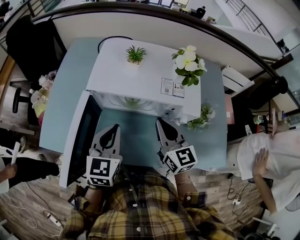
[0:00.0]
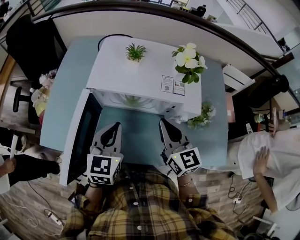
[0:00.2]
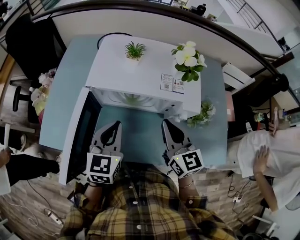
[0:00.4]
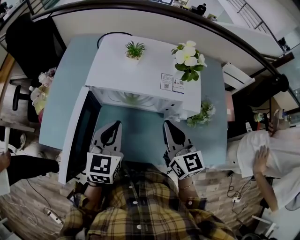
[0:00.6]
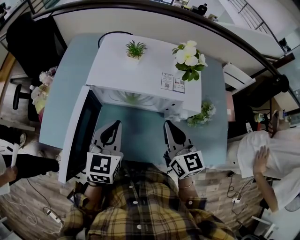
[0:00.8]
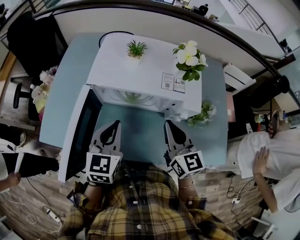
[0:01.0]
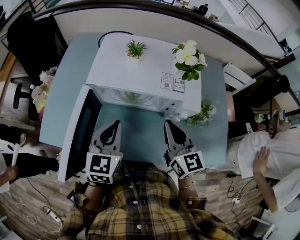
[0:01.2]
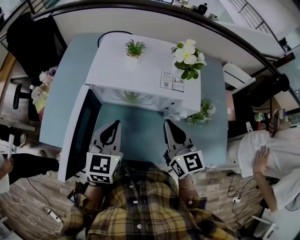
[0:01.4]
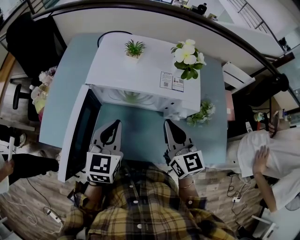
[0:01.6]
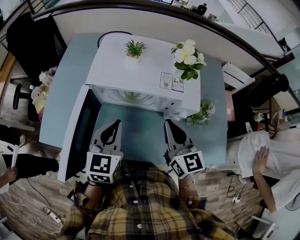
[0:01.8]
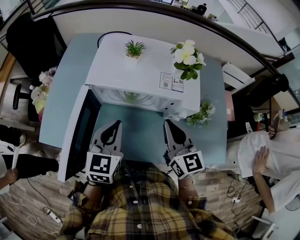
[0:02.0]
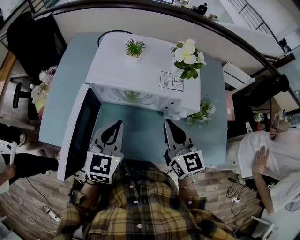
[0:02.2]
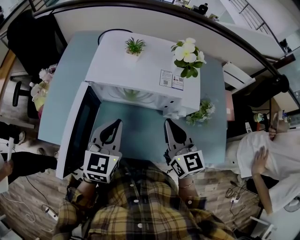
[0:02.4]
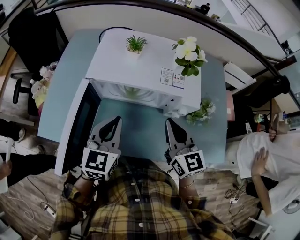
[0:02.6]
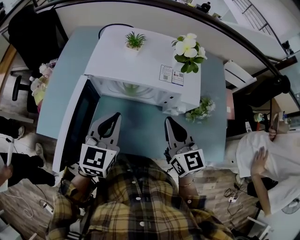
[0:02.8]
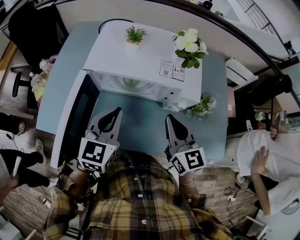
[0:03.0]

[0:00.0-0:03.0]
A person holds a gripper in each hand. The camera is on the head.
0.0 to 1.6 s: There are only small adjustments of the grippers.
1.6 to 3.0 s: The grippers make only small movements.

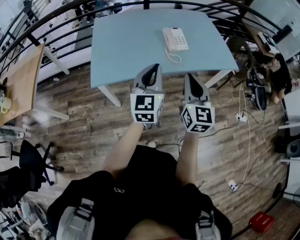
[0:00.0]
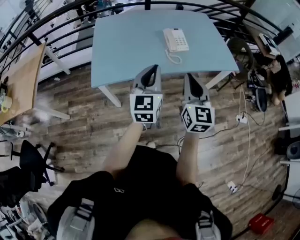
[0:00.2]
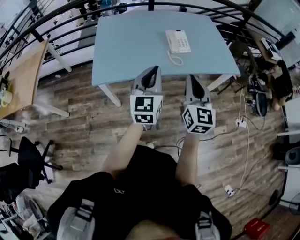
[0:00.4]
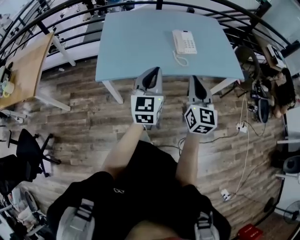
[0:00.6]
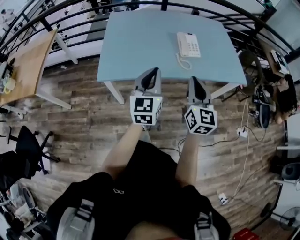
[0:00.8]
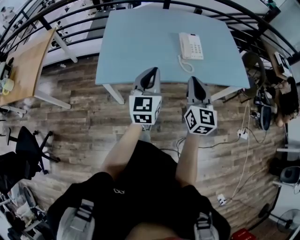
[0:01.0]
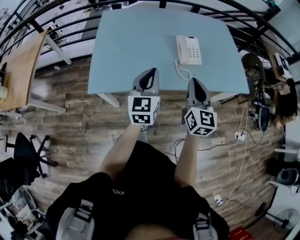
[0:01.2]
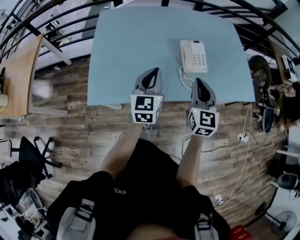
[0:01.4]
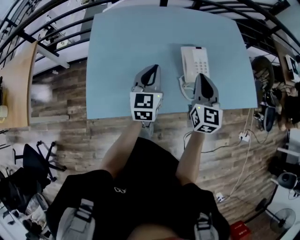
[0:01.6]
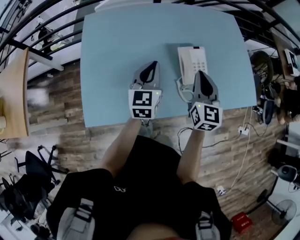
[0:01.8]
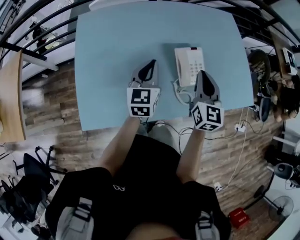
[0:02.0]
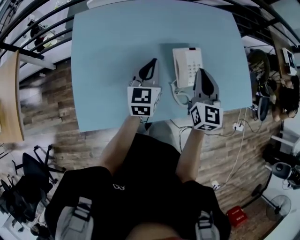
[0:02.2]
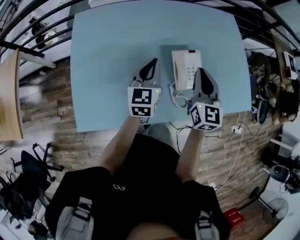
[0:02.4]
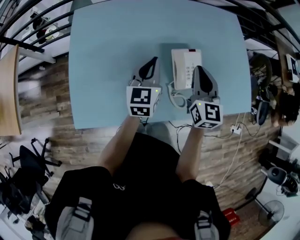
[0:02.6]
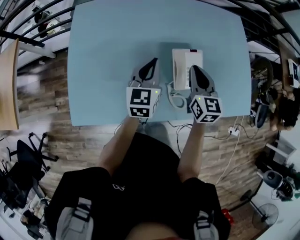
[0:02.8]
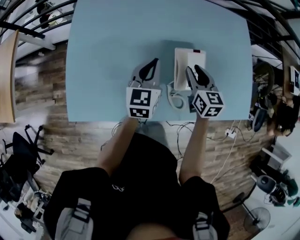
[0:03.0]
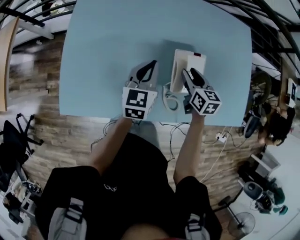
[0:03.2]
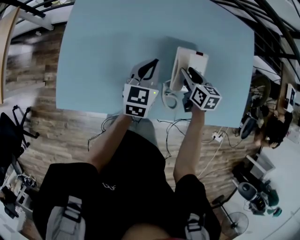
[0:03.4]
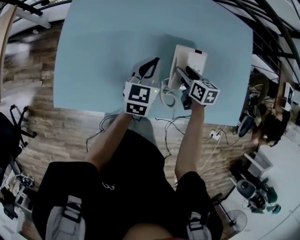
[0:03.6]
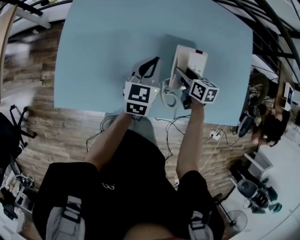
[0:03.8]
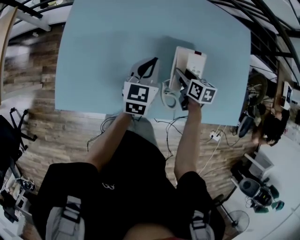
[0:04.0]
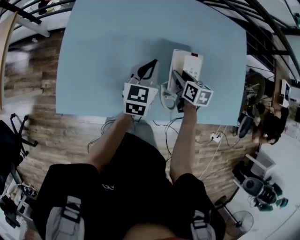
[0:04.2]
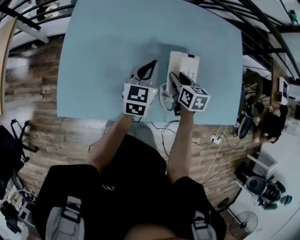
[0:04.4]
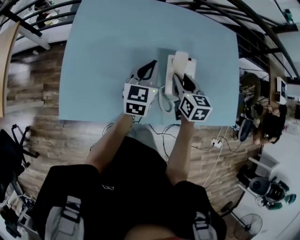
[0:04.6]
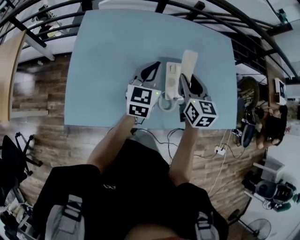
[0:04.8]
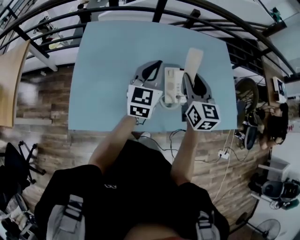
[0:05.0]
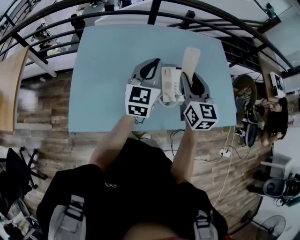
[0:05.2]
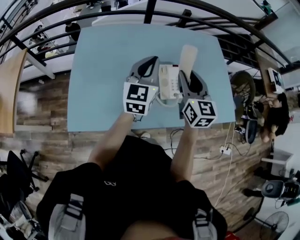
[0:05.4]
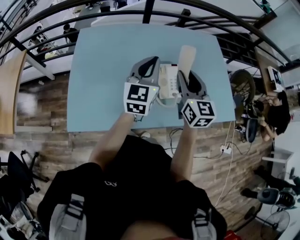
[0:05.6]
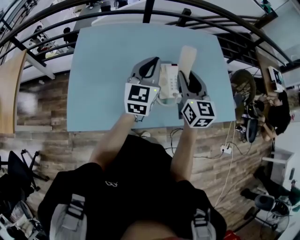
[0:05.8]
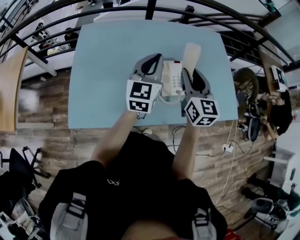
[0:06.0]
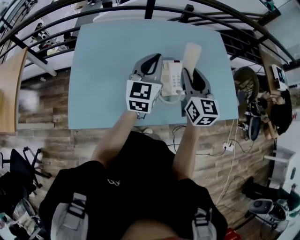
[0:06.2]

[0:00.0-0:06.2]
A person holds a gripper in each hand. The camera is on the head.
0.0 to 1.6 s: The grippers both shift forward by approximately 35 cm.
1.6 to 3.2 s: The right gripper shifts approximately 25 cm downward and forward, changes its angle by about 40 degrees, and opens. The left gripper shifts some 15 cm forward, downward and to the right.
3.2 to 4.6 s: The right gripper moves upward, about 5 cm.
4.6 to 6.2 s: The two grippers go about 15 cm upward. The right gripper turns by roughly 30 degrees.

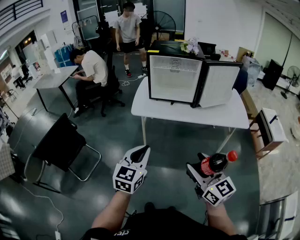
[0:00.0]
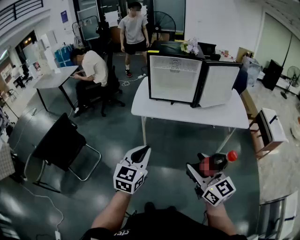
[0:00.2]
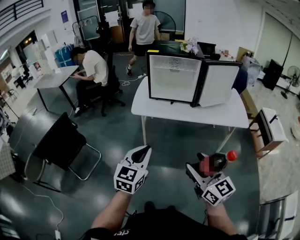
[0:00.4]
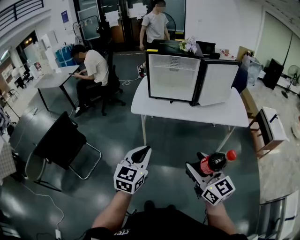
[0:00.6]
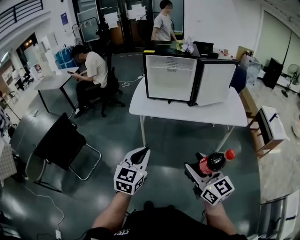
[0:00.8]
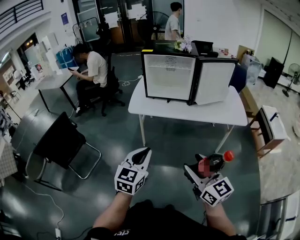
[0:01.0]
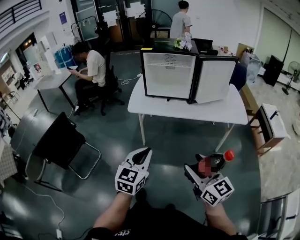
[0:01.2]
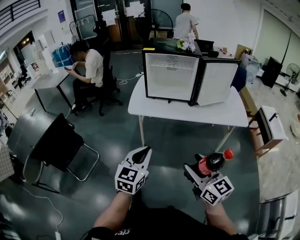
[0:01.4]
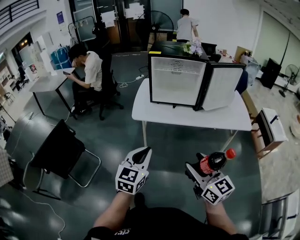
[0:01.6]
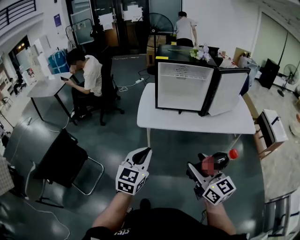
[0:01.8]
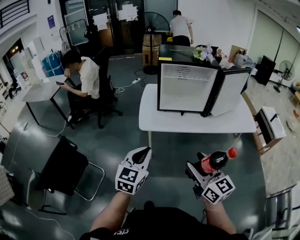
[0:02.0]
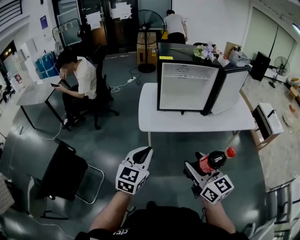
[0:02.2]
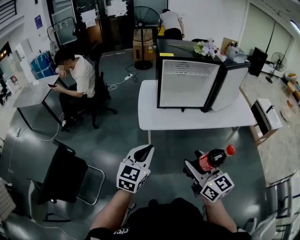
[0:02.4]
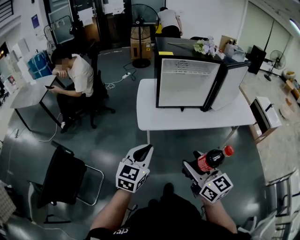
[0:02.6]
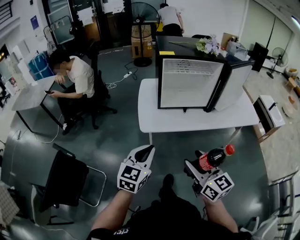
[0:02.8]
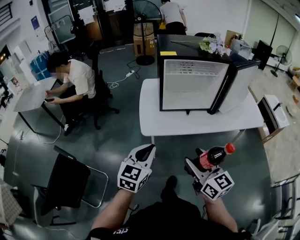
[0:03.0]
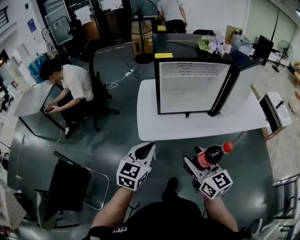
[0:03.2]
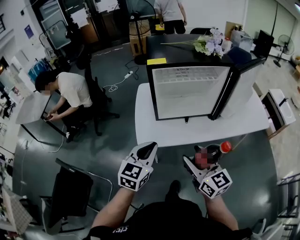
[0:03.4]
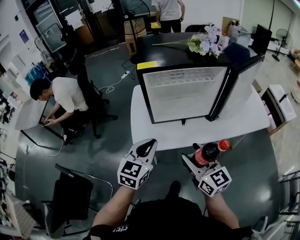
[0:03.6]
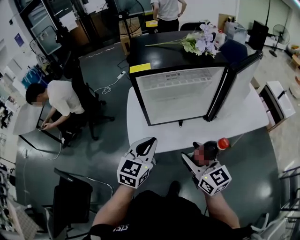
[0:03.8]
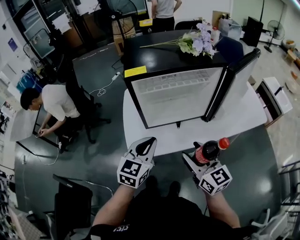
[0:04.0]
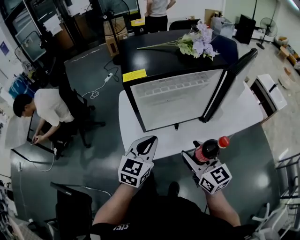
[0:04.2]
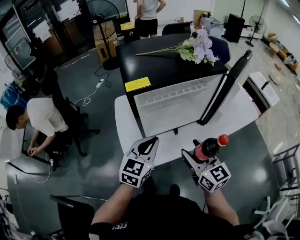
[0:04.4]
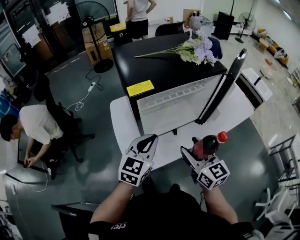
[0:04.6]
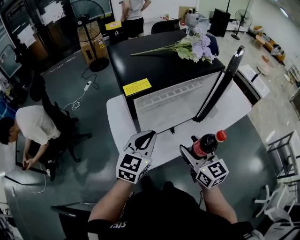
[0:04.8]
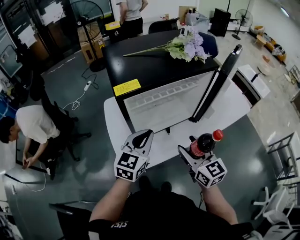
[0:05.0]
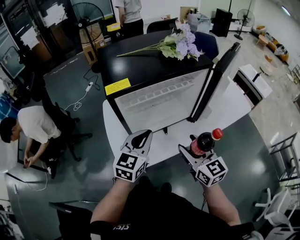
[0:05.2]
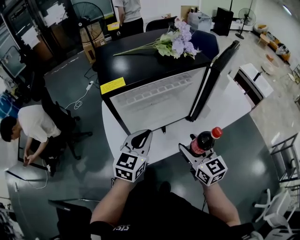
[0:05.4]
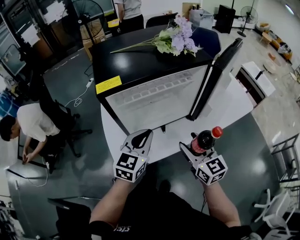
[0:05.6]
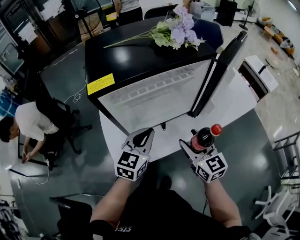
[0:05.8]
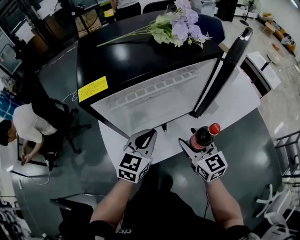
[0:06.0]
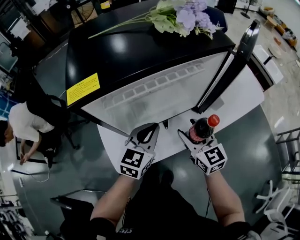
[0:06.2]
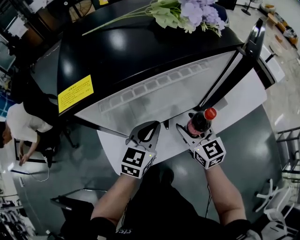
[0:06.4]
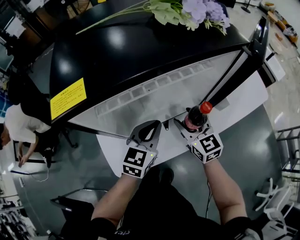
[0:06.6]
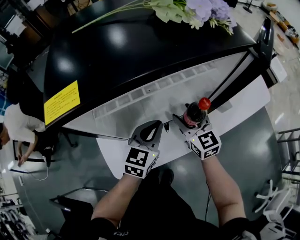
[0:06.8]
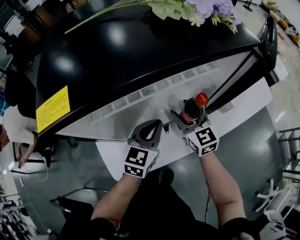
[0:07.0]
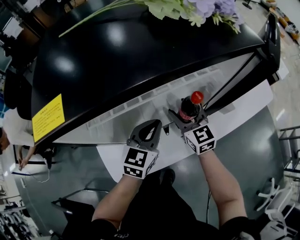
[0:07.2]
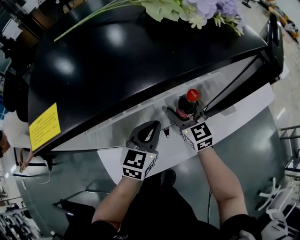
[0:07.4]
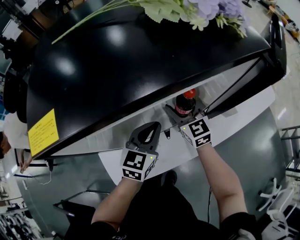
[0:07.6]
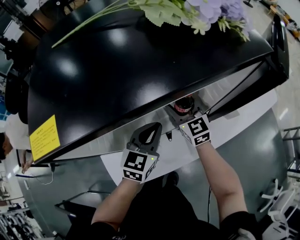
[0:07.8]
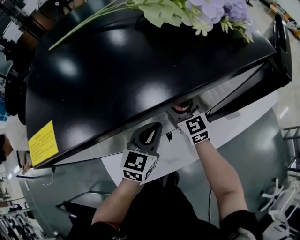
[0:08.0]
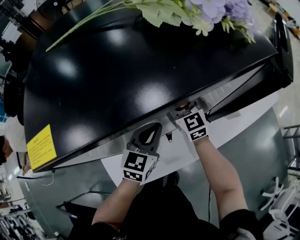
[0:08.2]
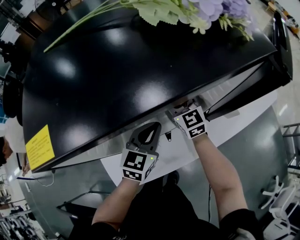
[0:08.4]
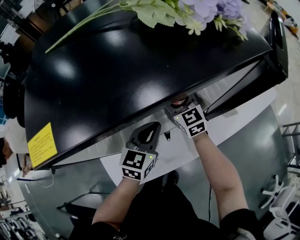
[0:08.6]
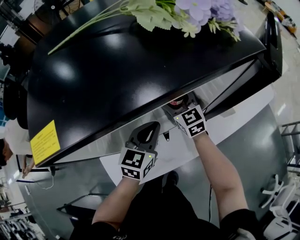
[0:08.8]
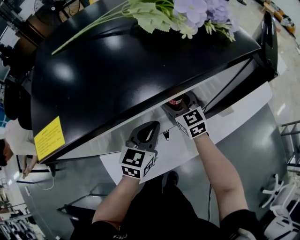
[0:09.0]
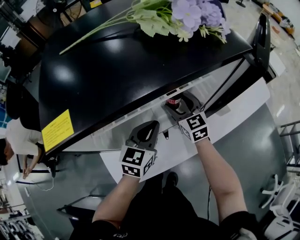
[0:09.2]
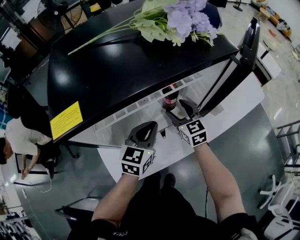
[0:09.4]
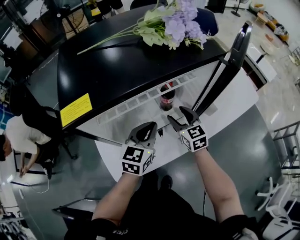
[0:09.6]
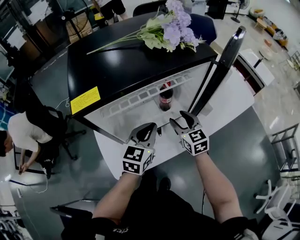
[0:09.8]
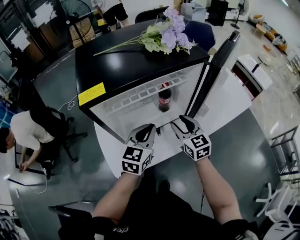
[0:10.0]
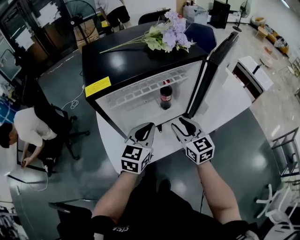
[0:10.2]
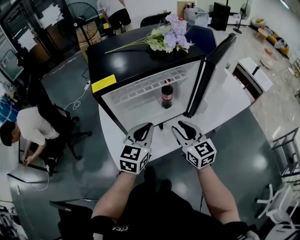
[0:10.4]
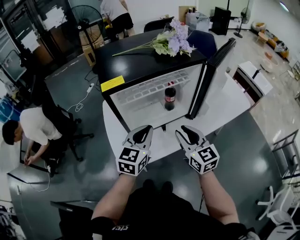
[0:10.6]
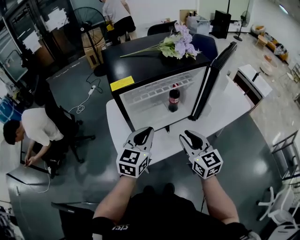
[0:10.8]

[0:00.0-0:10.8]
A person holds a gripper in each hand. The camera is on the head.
0.0 to 1.6 s: Both grippers move forward, about 5 cm.
1.6 to 3.0 s: The grippers both shift forward and to the left by roughly 30 cm.
3.0 to 4.6 s: The grippers both shift forward by roughly 30 cm. The right gripper rotates some 20 degrees. Meanwhile the left gripper turns by roughly 20 degrees.
4.6 to 6.2 s: The right gripper heads forward, downward and to the right, covering roughly 20 cm, while the left gripper goes approximately 15 cm downward, to the right and forward.
6.2 to 7.8 s: The right gripper moves forward and downward, roughly 20 cm. Meanwhile the left gripper is displaced forward and downward by approximately 10 cm.
7.8 to 9.2 s: The grippers move only a little.
9.2 to 10.8 s: Both grippers travel together backward and upward, approximately 30 cm. The right gripper closes up.

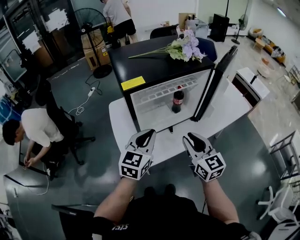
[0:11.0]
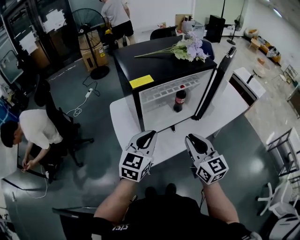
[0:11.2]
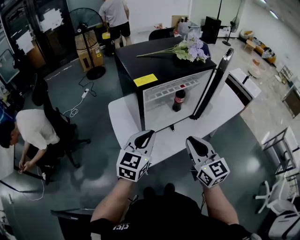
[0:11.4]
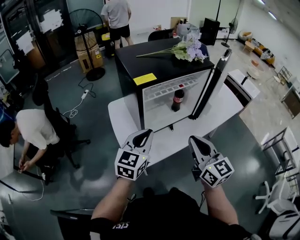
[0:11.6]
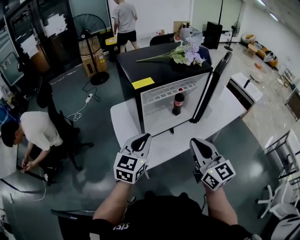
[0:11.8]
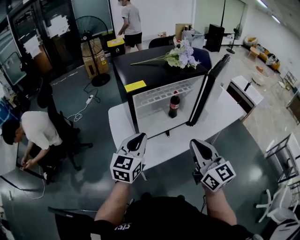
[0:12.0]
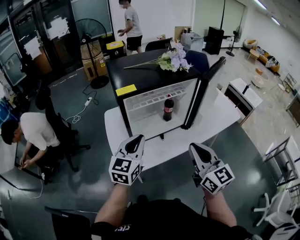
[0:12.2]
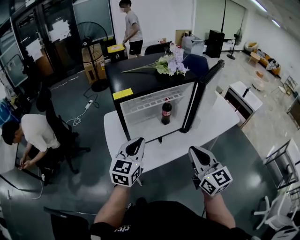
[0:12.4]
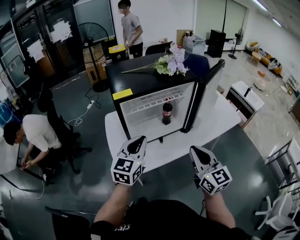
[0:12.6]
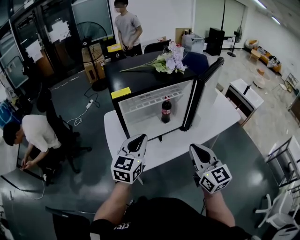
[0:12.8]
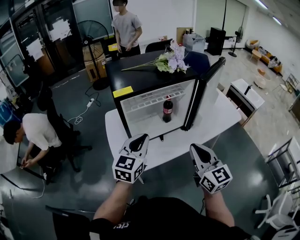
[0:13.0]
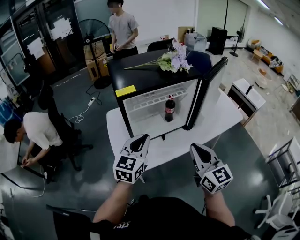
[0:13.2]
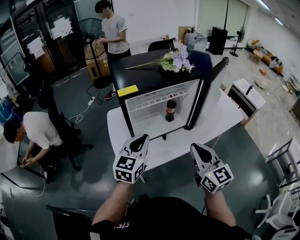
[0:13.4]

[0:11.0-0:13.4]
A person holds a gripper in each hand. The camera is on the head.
11.0 to 12.2 s: The right gripper goes roughly 10 cm upward and backward.
12.2 to 13.4 s: There are only small adjustments of the grippers.

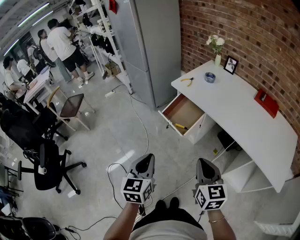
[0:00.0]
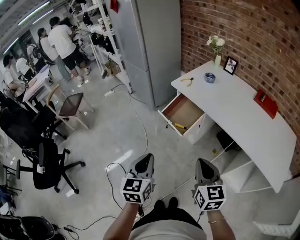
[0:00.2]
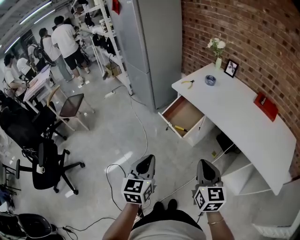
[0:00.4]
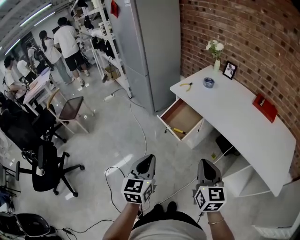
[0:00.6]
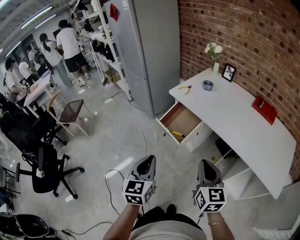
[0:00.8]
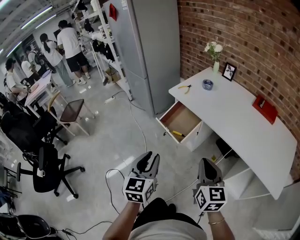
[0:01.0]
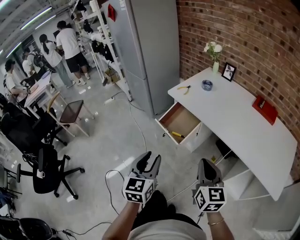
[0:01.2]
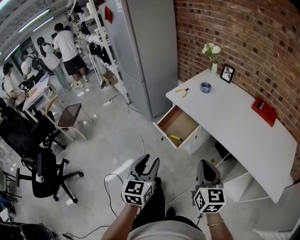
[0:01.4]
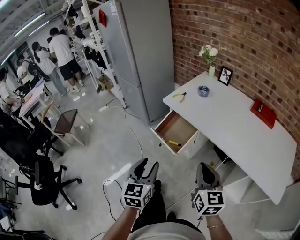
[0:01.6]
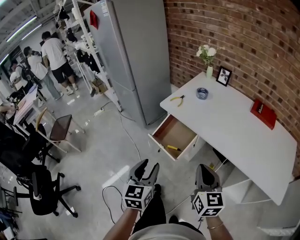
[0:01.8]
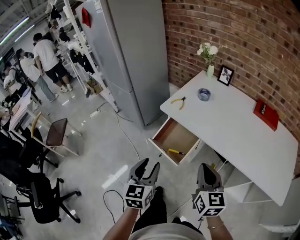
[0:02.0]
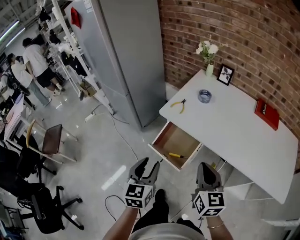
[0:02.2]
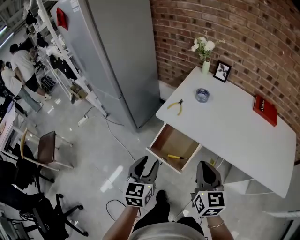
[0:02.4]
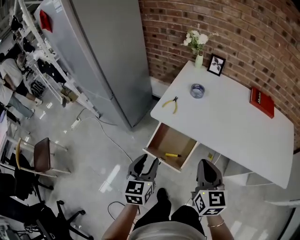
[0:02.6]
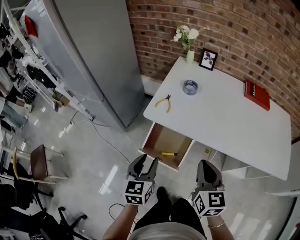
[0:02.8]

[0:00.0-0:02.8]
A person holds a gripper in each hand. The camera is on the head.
0.0 to 1.4 s: Both grippers travel together forward, about 5 cm. The left gripper opens up.
1.4 to 2.8 s: The right gripper goes about 25 cm forward and to the left, and turns by approximately 20 degrees. The left gripper goes approximately 30 cm forward, and swivels roughly 20 degrees.
